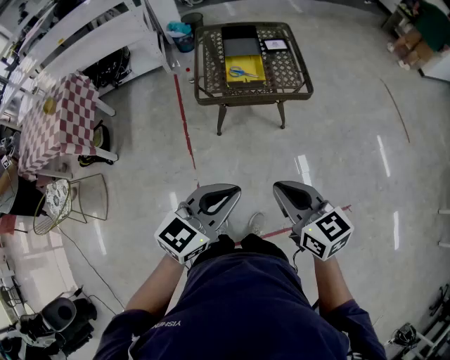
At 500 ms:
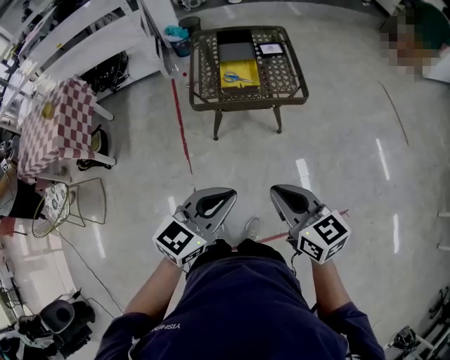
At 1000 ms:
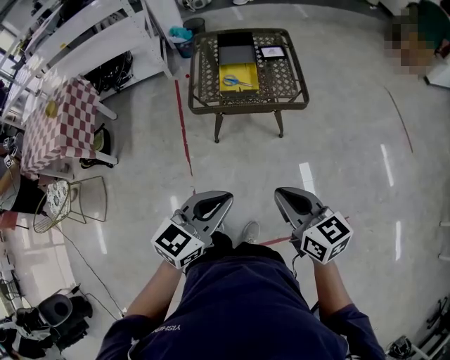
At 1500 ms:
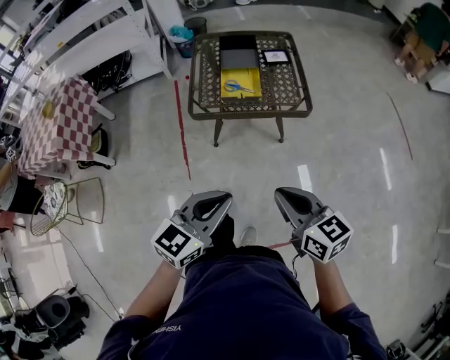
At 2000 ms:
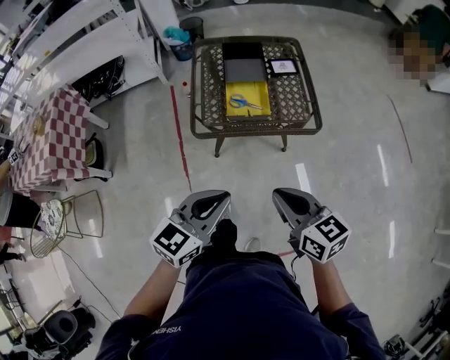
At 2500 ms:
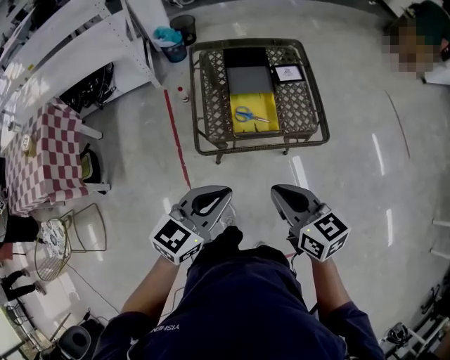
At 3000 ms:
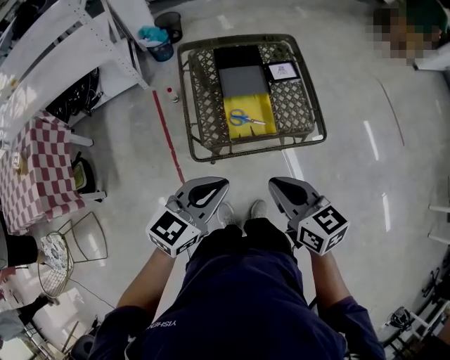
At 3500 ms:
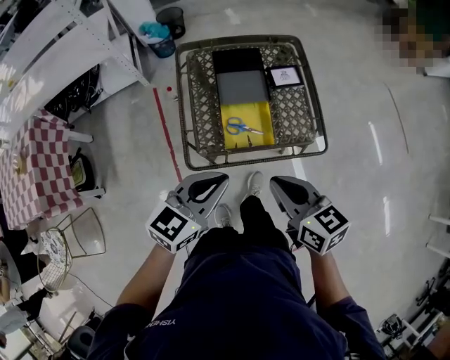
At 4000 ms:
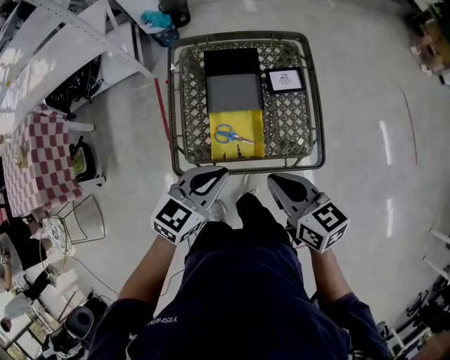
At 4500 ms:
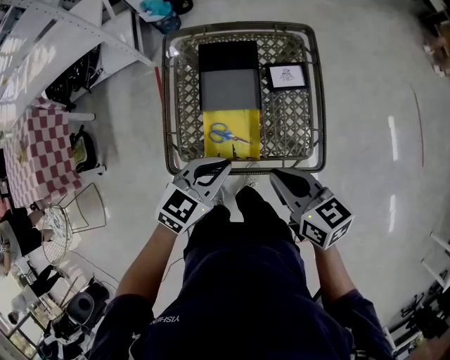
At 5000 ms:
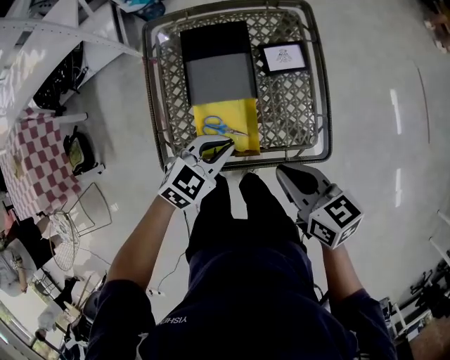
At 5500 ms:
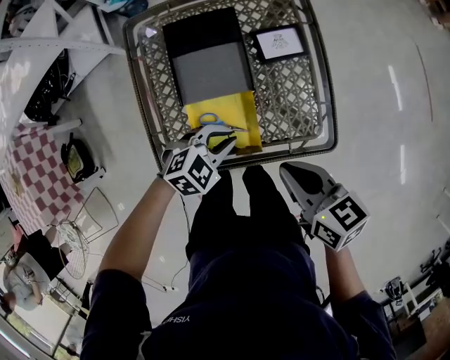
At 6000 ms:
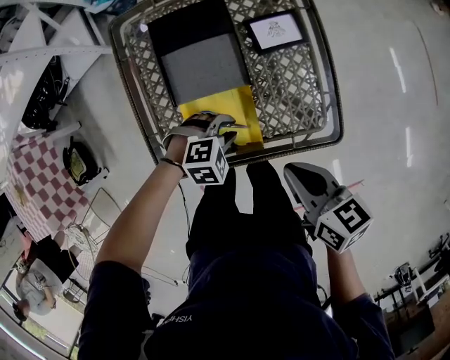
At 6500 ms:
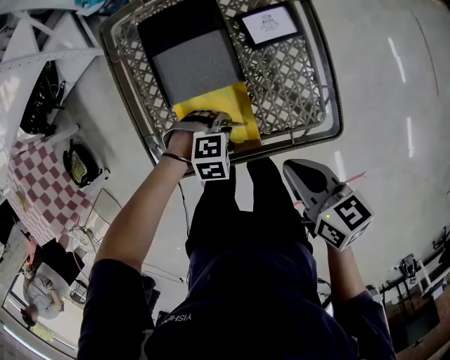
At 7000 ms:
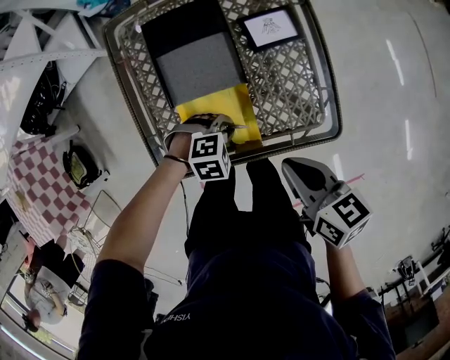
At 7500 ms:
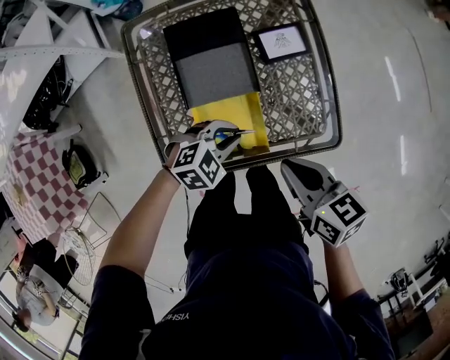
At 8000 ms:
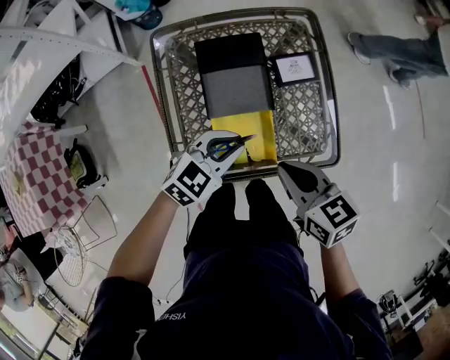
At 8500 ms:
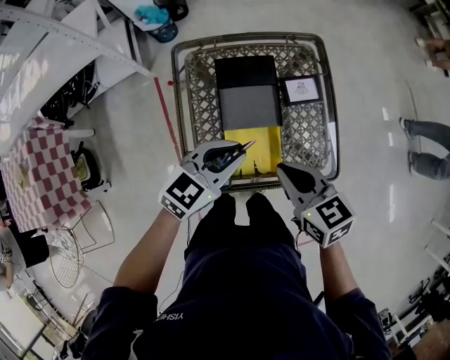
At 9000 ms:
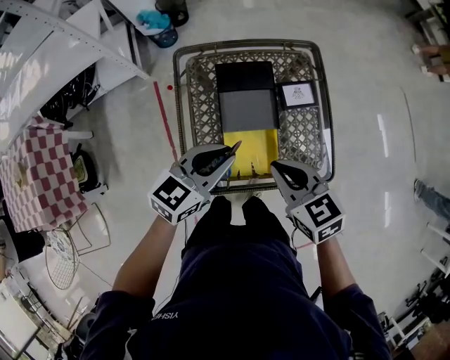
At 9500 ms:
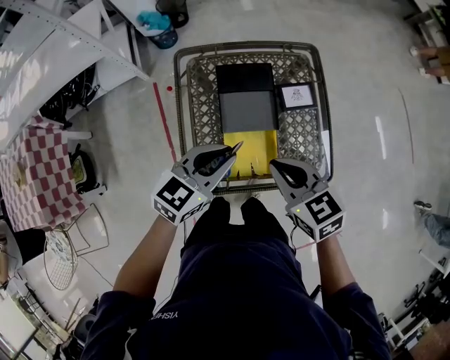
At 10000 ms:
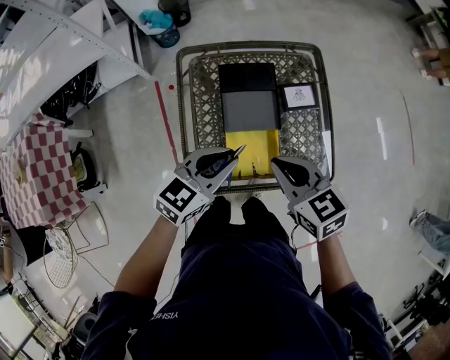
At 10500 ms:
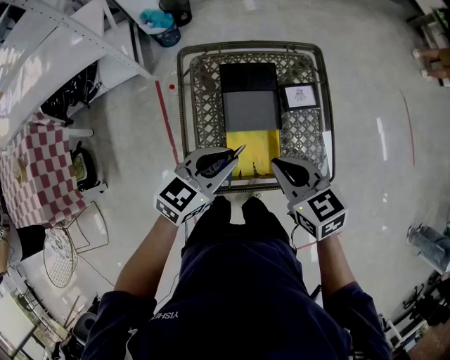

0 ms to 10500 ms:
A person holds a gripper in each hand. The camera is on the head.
0 ms to 2000 ms: The two grippers go some 20 cm forward.
2000 ms to 4000 ms: The two grippers go some 30 cm forward.
4000 ms to 6500 ms: The right gripper shifts roughly 15 cm downward. Meanwhile the left gripper heads downward, covering some 30 cm, and points its fingers roughly 50 degrees further downward.
6500 ms to 8500 ms: The right gripper shifts by about 15 cm, and rotates about 20 degrees. The left gripper heads upward, covering roughly 30 cm, and tips its fingers upward by roughly 50 degrees.
8500 ms to 10500 ms: The grippers make only small movements.

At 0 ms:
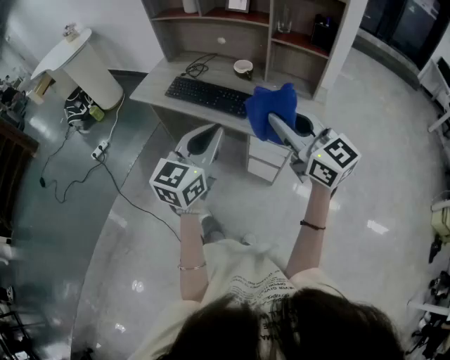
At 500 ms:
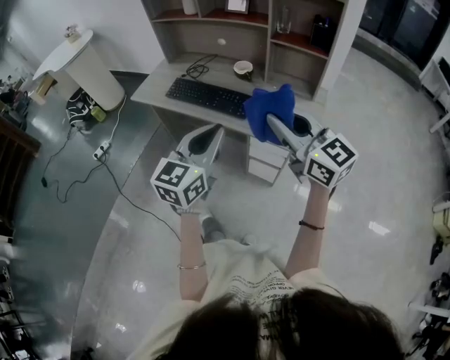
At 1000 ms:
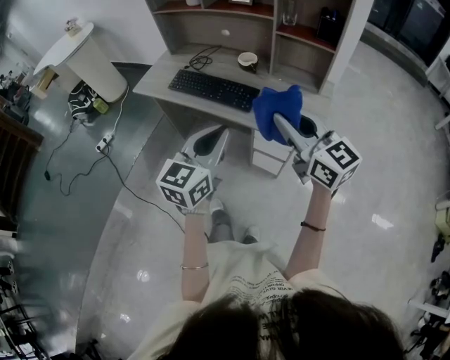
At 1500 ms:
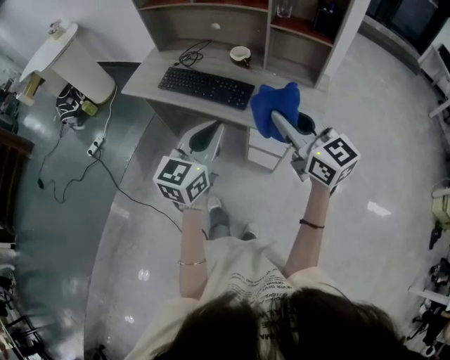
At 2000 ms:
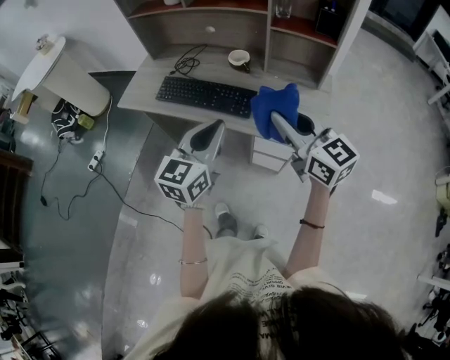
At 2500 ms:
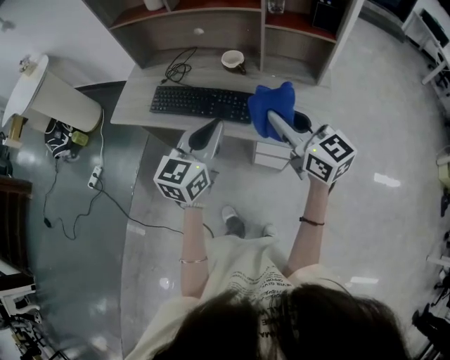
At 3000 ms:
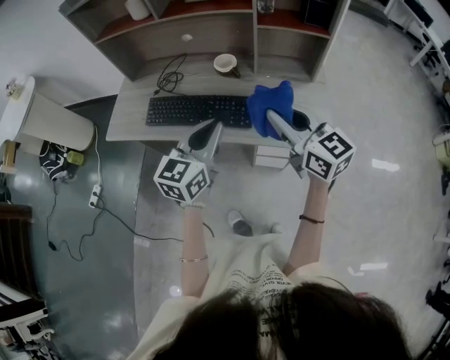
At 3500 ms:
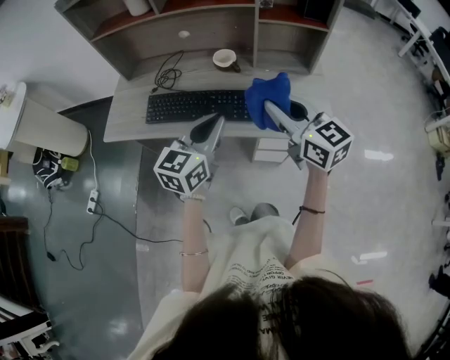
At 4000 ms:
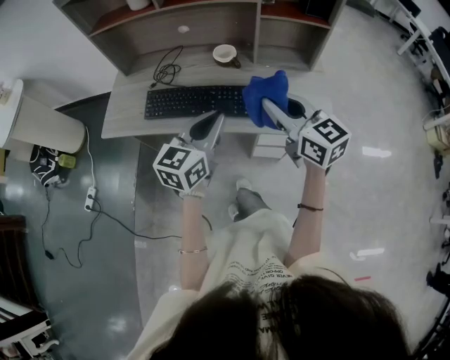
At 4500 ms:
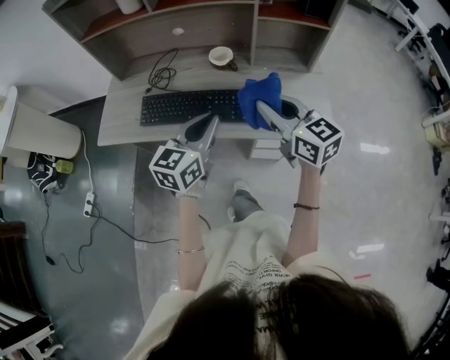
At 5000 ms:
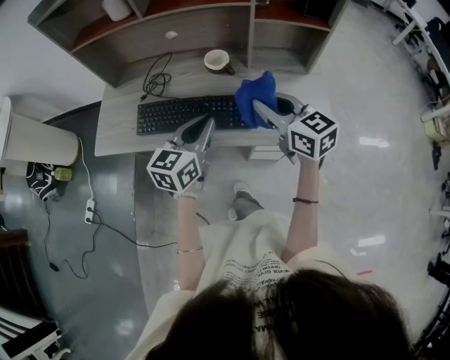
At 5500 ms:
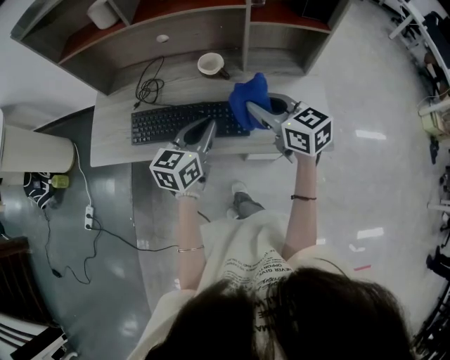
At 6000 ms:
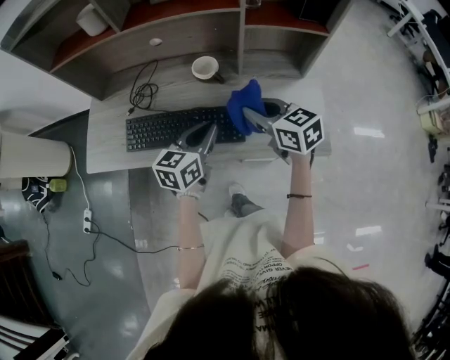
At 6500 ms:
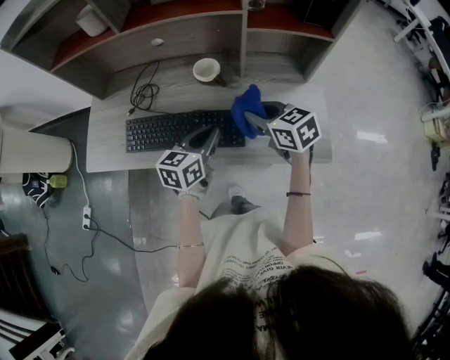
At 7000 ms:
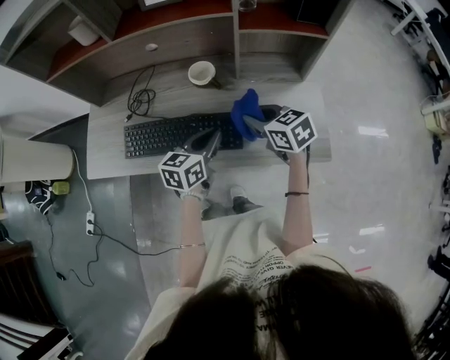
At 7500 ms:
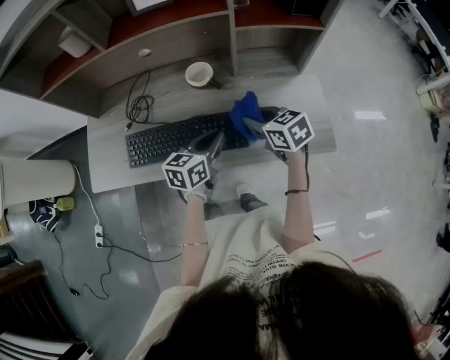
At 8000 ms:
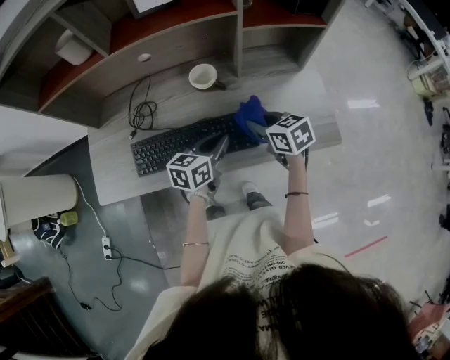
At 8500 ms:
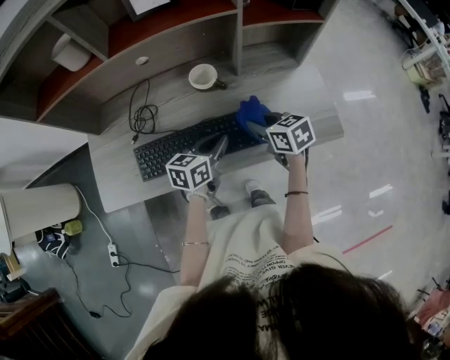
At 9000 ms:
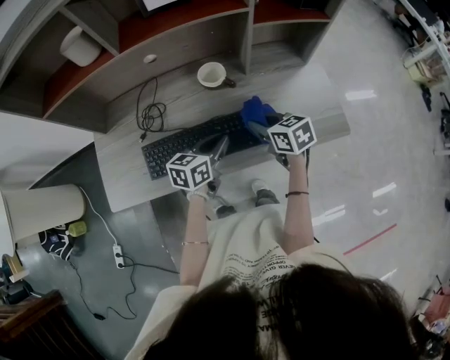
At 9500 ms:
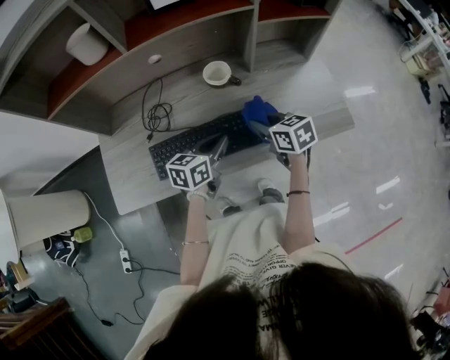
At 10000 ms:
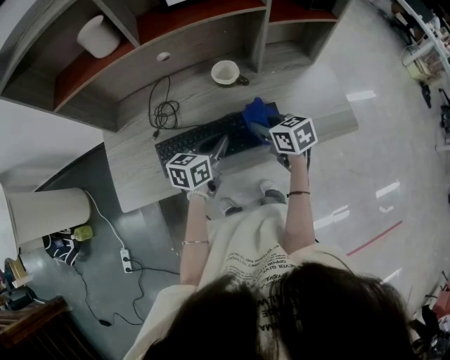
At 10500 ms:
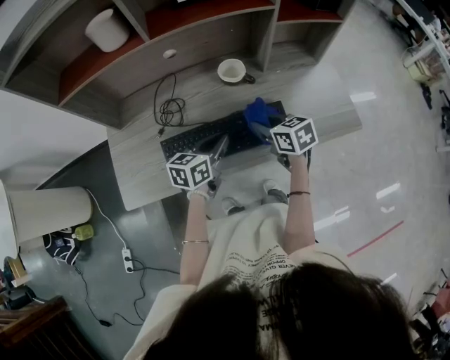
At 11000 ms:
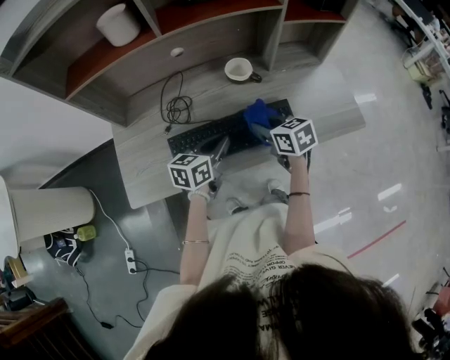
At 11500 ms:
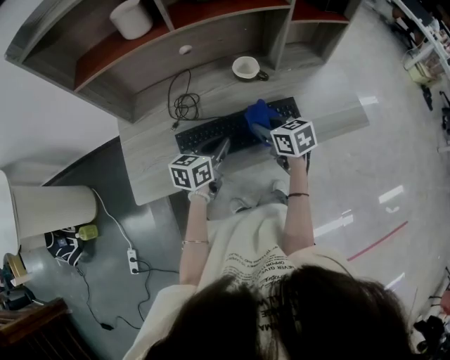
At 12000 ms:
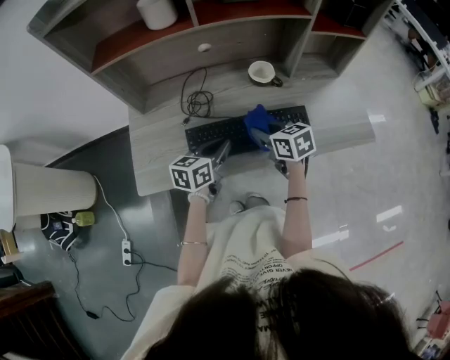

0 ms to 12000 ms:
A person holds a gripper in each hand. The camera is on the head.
0 ms to 2000 ms: The left gripper moves forward, approximately 10 cm. Meanwhile the right gripper heads forward and downward, covering roughly 10 cm.
2000 ms to 4000 ms: The left gripper travels forward and to the left by about 10 cm. Meanwhile the right gripper travels to the left and forward by approximately 10 cm.
4000 ms to 6000 ms: The two grippers go some 15 cm forward and downward.
6000 ms to 8000 ms: Both grippers travel together downward, approximately 10 cm.
8000 ms to 10000 ms: The grippers both shift to the left by about 10 cm.
10000 ms to 12000 ms: Both grippers travel together to the left, some 10 cm.

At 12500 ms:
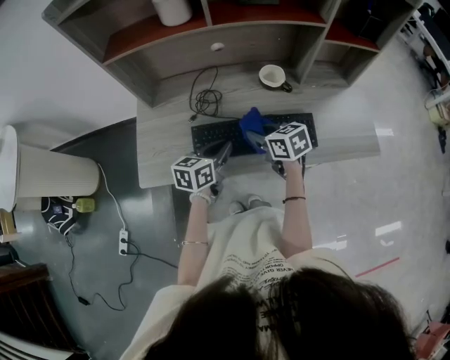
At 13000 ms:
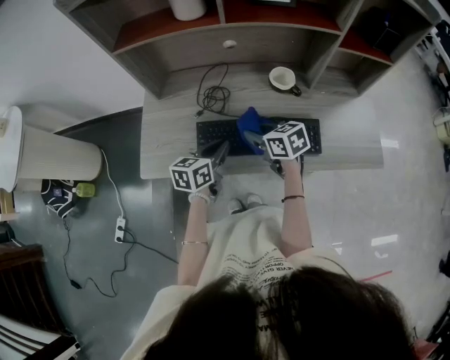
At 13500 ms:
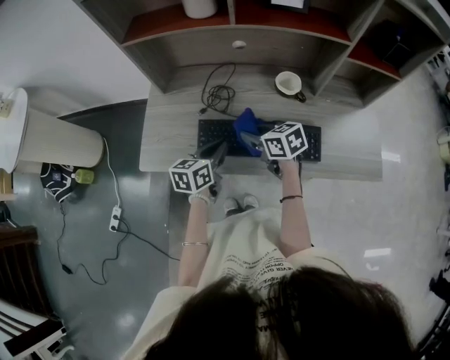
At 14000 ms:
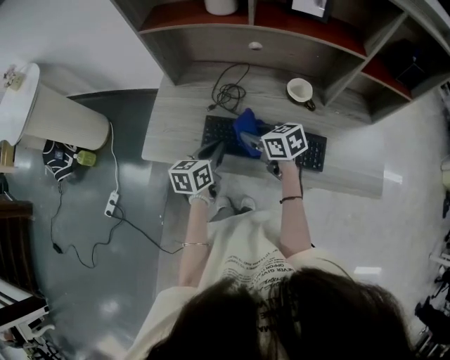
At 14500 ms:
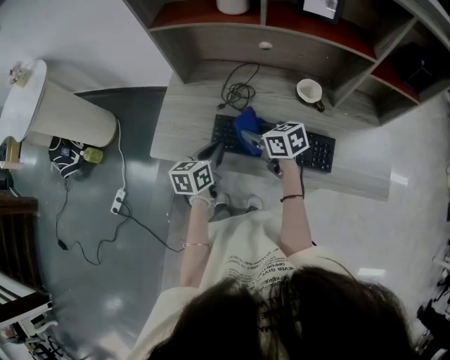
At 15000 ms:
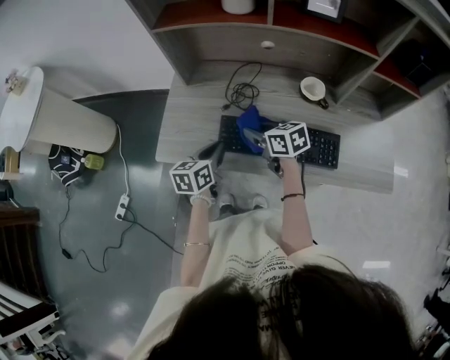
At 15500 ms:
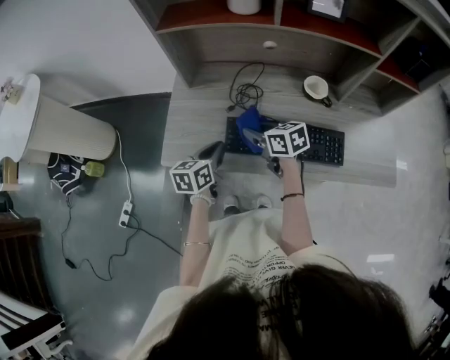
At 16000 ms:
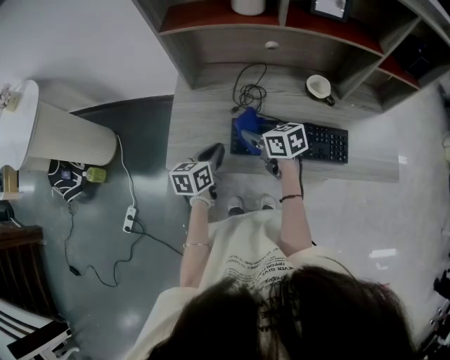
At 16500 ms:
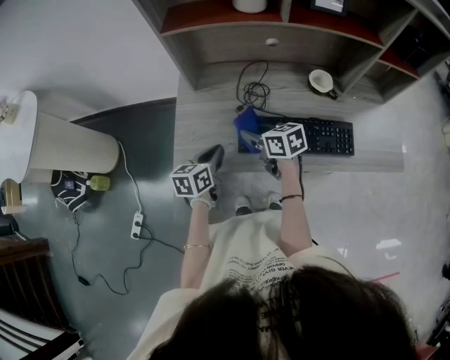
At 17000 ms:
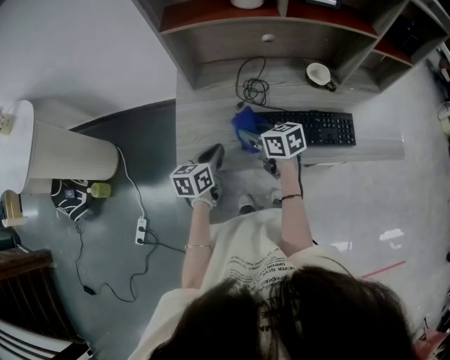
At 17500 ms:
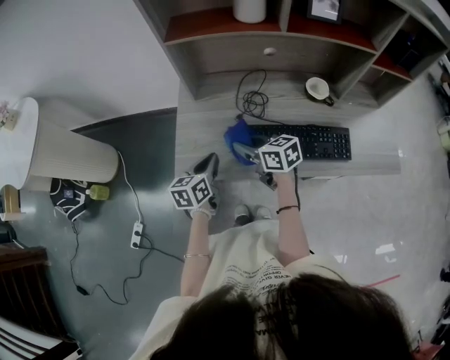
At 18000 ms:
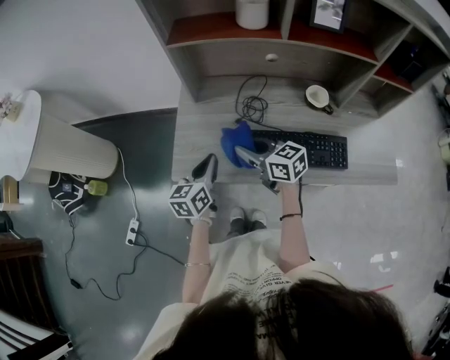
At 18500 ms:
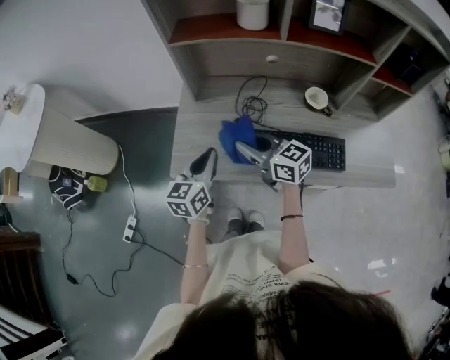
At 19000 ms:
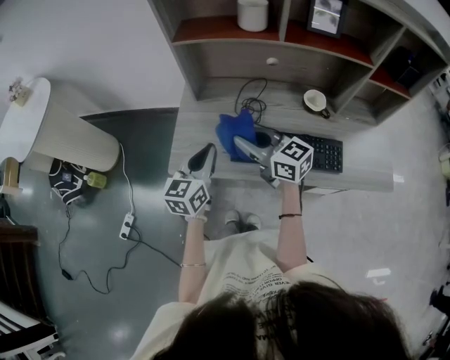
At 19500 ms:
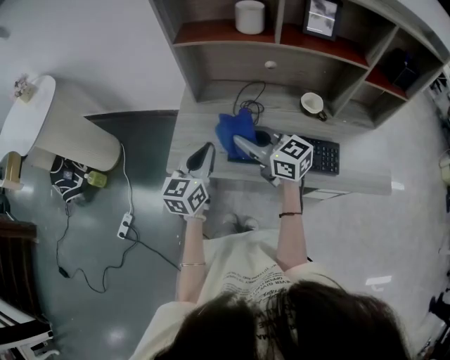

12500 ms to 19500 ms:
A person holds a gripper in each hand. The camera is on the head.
12500 ms to 14500 ms: The two grippers go approximately 10 cm to the left. The left gripper rotates some 30 degrees.
14500 ms to 16000 ms: Both grippers travel together to the left, about 5 cm.
16000 ms to 17500 ms: Both grippers travel together to the left, some 5 cm.
17500 ms to 19500 ms: The grippers both shift upward by some 10 cm. The left gripper changes its angle by roughly 20 degrees. The right gripper turns by approximately 30 degrees.
